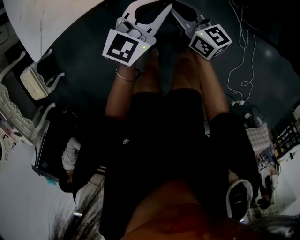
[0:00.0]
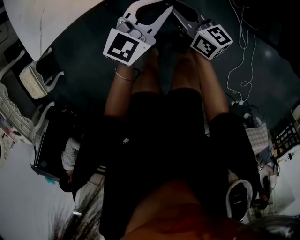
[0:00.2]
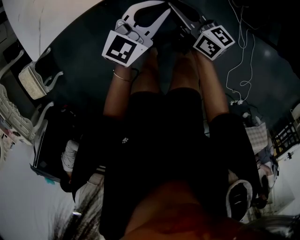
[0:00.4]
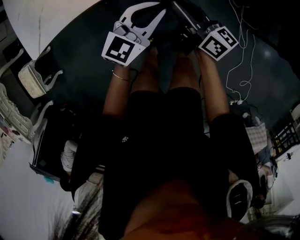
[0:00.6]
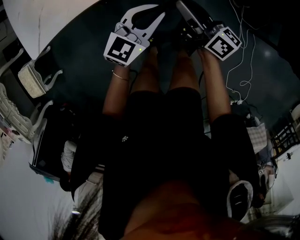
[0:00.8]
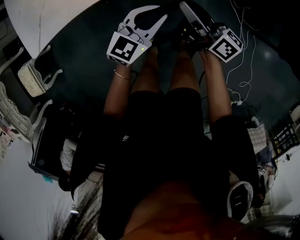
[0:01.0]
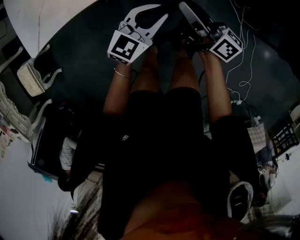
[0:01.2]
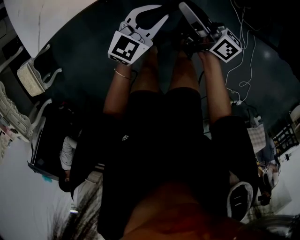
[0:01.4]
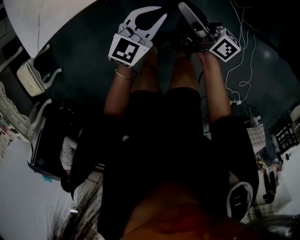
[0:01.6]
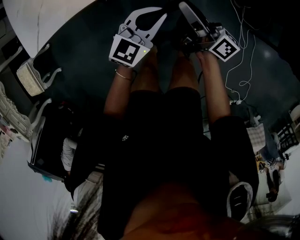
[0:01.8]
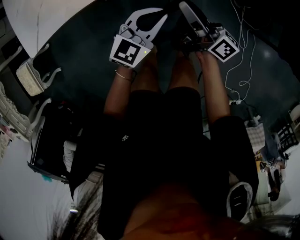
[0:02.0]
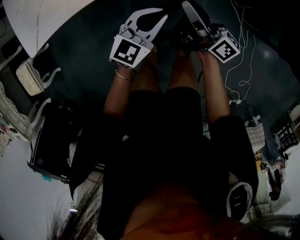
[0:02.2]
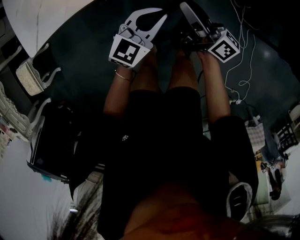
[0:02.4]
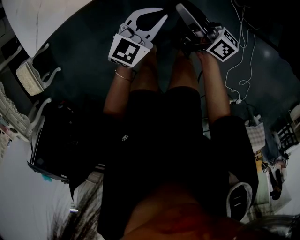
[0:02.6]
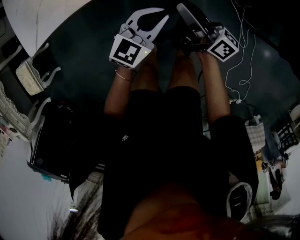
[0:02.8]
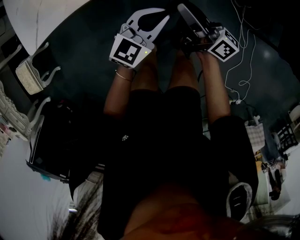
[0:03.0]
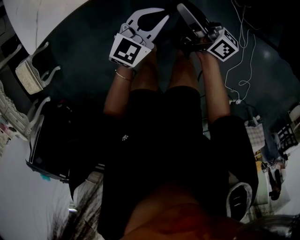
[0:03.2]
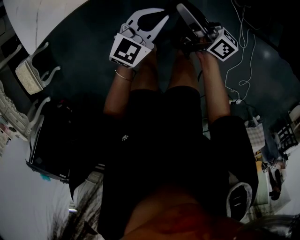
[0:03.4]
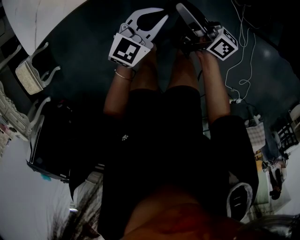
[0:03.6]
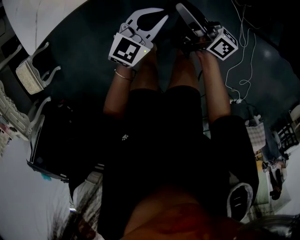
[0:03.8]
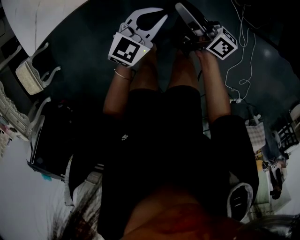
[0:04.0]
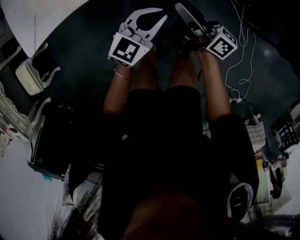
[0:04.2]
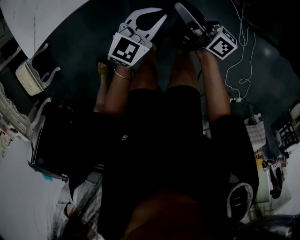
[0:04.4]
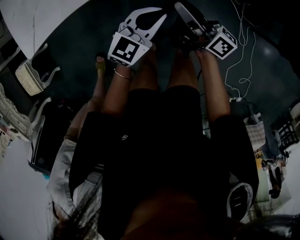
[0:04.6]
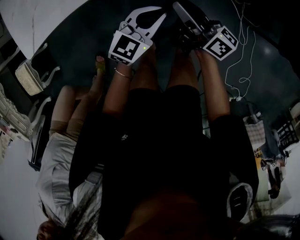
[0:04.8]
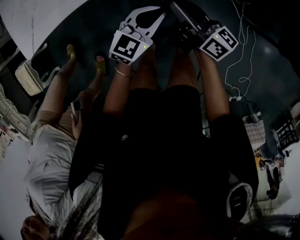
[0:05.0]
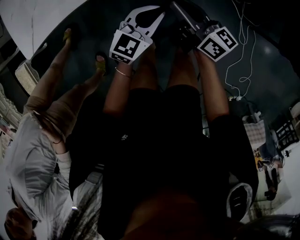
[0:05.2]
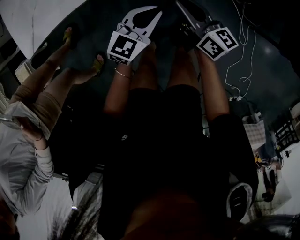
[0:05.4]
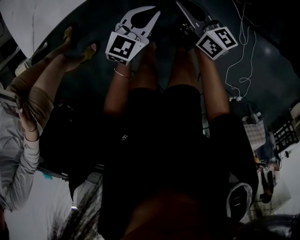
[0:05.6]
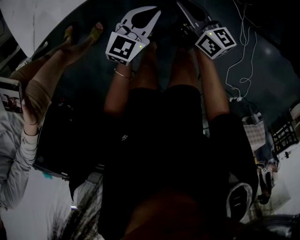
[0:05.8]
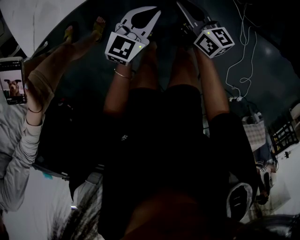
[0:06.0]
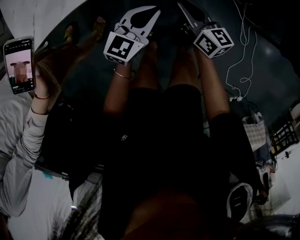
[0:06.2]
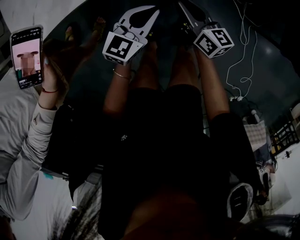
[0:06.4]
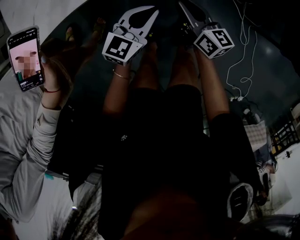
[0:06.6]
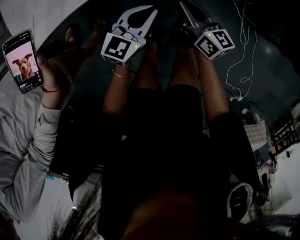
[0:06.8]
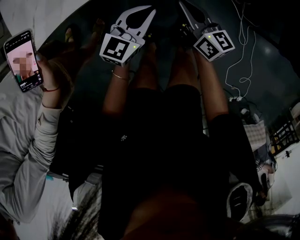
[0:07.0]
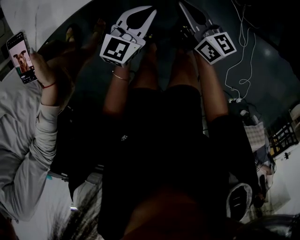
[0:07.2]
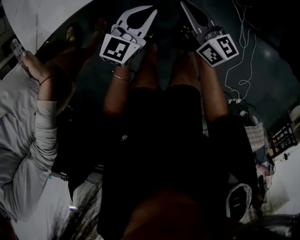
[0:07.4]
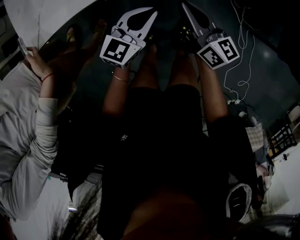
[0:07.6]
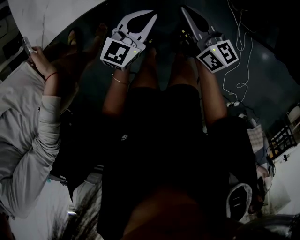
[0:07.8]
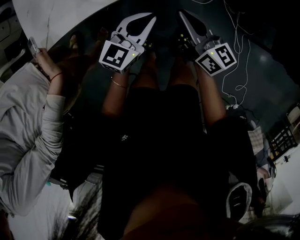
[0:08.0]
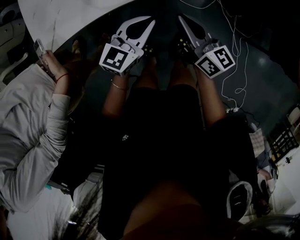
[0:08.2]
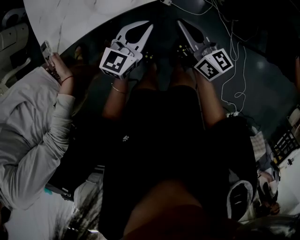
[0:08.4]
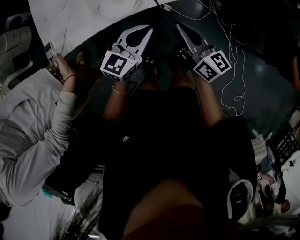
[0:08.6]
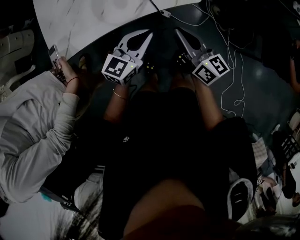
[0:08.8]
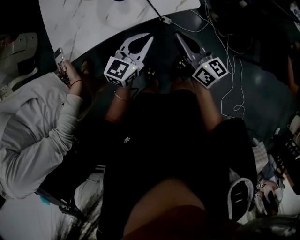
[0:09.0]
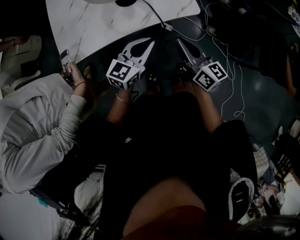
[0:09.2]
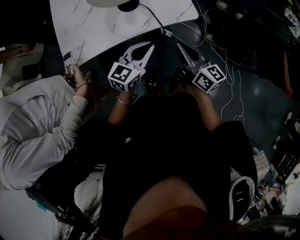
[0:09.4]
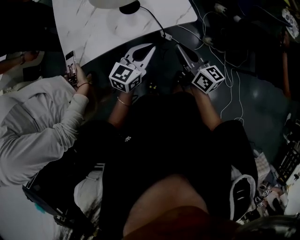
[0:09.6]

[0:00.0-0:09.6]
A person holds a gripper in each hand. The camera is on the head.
0.0 to 1.6 s: The left gripper moves downward, about 5 cm, while the right gripper turns by about 30 degrees.
1.6 to 4.8 s: The grippers stay close to where they were, moving slightly.
4.8 to 6.4 s: The right gripper shifts about 5 cm downward, and changes its angle by roughly 30 degrees.
6.4 to 8.0 s: The right gripper goes approximately 10 cm upward; the left gripper shifts by about 5 cm.
8.0 to 9.6 s: The grippers both shift upward by approximately 10 cm.

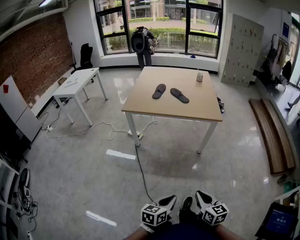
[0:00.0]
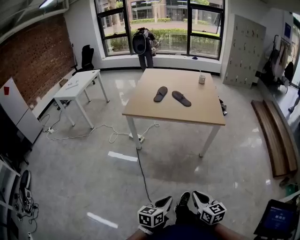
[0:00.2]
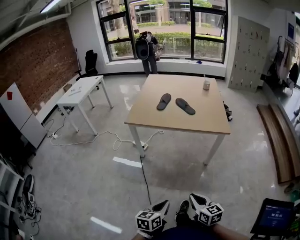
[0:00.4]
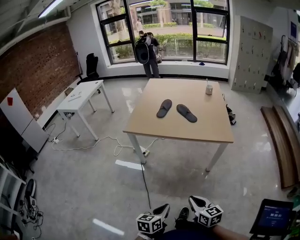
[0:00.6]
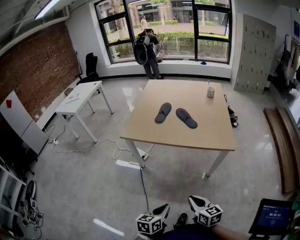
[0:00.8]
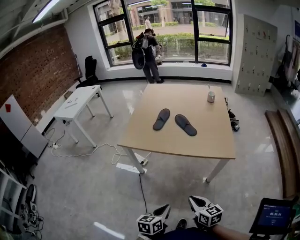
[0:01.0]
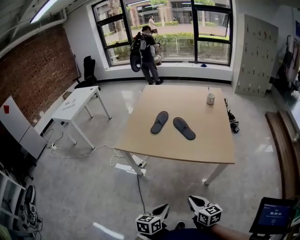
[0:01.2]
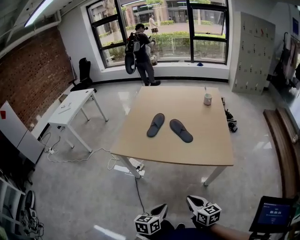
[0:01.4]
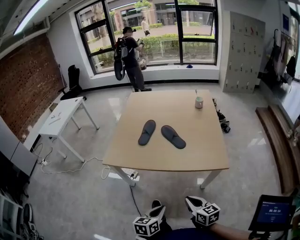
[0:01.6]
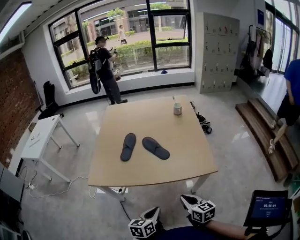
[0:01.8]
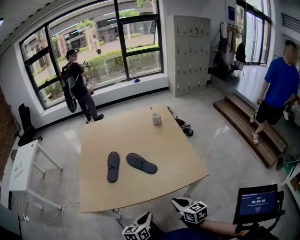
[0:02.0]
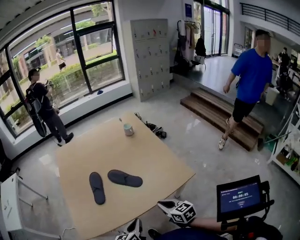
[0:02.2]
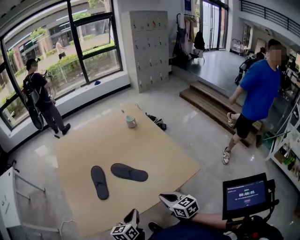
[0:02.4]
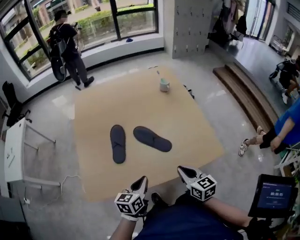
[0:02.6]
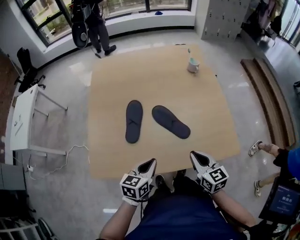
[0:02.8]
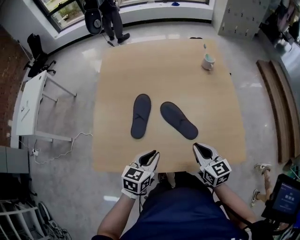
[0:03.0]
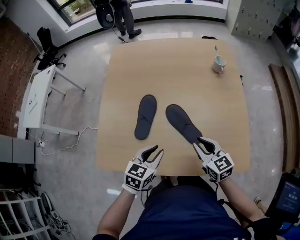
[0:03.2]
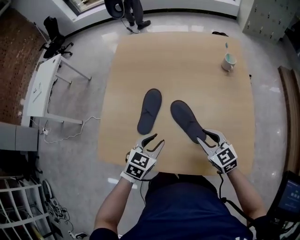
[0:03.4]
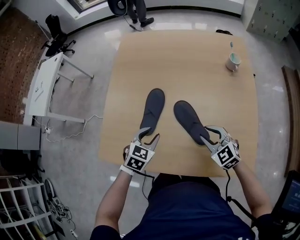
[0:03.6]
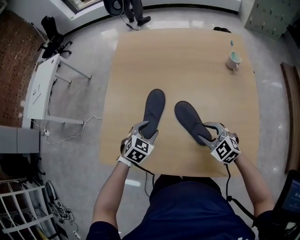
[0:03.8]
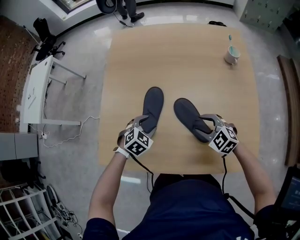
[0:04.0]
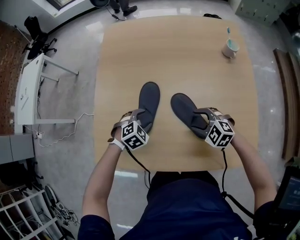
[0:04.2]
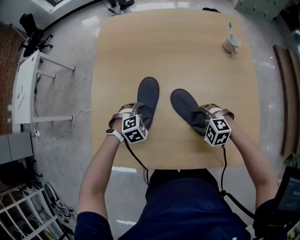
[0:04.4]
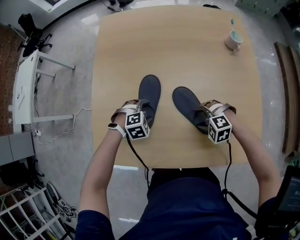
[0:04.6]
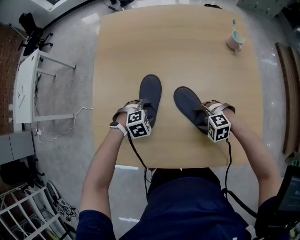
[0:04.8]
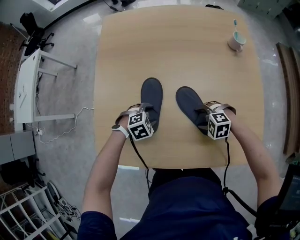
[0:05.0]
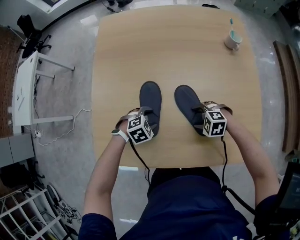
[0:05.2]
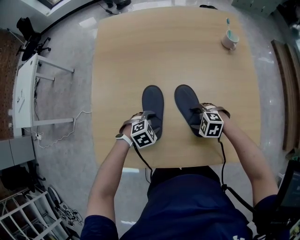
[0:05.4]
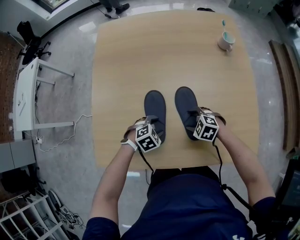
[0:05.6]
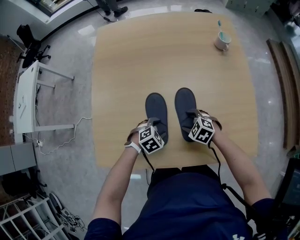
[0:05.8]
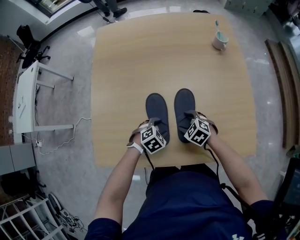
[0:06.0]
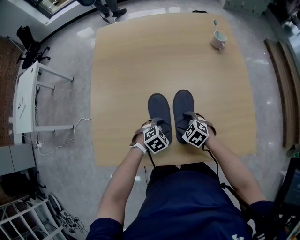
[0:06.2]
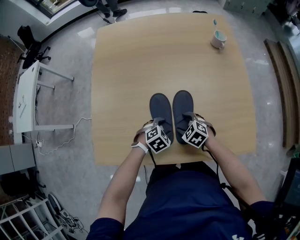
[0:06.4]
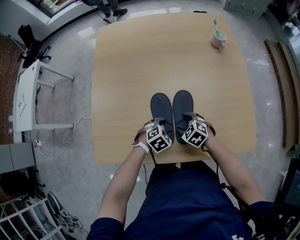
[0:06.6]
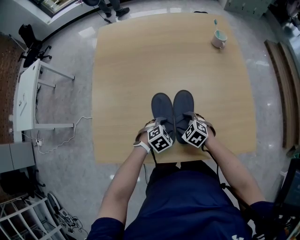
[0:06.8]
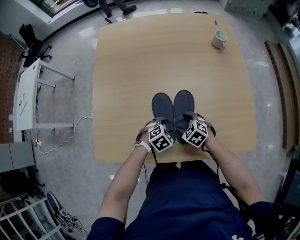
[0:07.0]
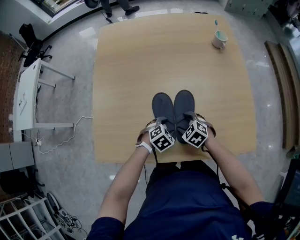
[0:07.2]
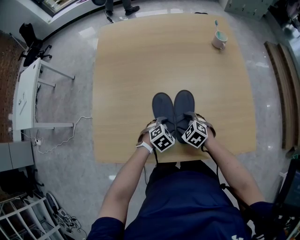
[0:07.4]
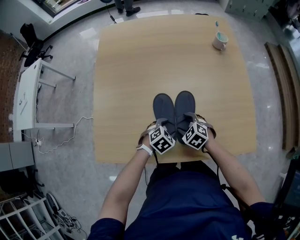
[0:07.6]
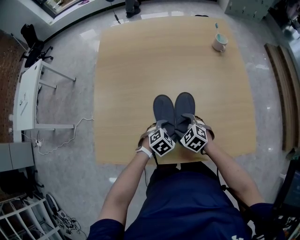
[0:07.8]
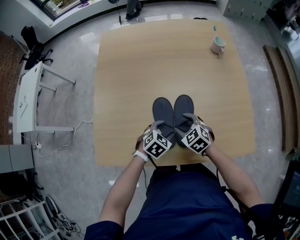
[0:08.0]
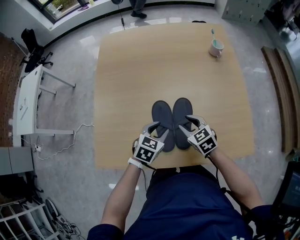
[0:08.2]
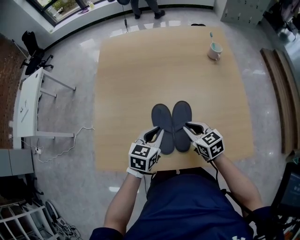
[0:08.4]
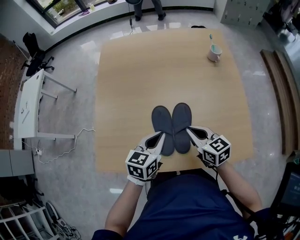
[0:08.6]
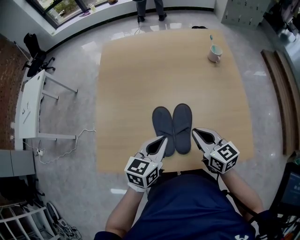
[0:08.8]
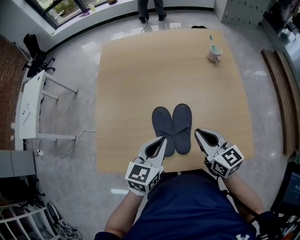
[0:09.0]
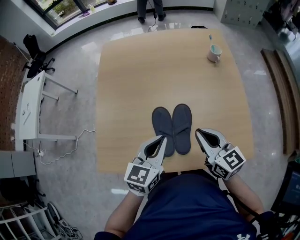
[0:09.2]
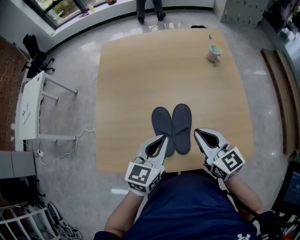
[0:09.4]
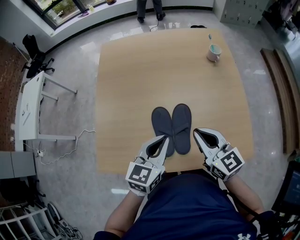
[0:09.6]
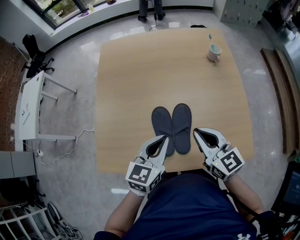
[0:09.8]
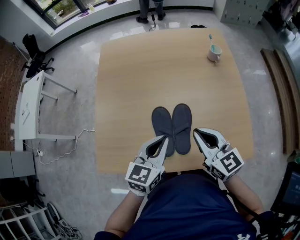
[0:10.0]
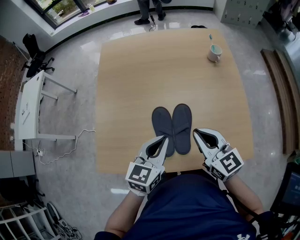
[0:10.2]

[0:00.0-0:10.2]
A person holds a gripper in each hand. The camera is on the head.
0.0 to 1.4 s: The two grippers go about 40 cm forward.
1.4 to 3.0 s: The two grippers go some 40 cm forward. The left gripper rotates some 20 degrees.
3.0 to 4.4 s: The right gripper moves downward and forward, about 20 cm, angles its fingers downward, by some 30 degrees, and opens up; the left gripper is displaced forward and downward by about 25 cm, rolls clockwise, seen from behind, by about 50 degrees, and opens up.
4.4 to 5.8 s: The right gripper changes place by roughly 5 cm, and turns by about 30 degrees; the left gripper moves about 10 cm.
5.8 to 7.2 s: There are only small adjustments of the grippers.
7.2 to 8.8 s: Both grippers travel together upward, approximately 20 cm. The left gripper angles its fingers upward, by approximately 40 degrees, and closes. Meanwhile the right gripper points its fingers some 40 degrees further upward, and closes up.
8.8 to 10.2 s: The right gripper heads upward, covering approximately 5 cm.

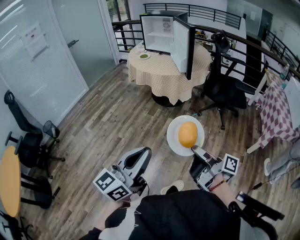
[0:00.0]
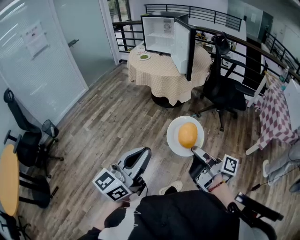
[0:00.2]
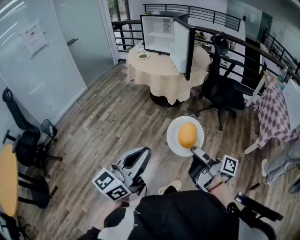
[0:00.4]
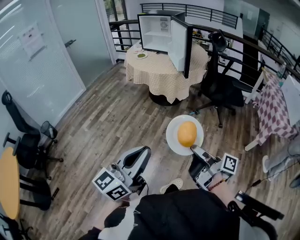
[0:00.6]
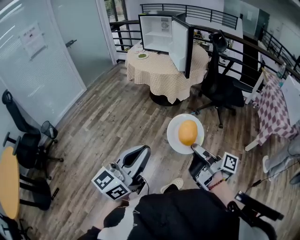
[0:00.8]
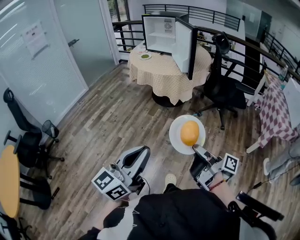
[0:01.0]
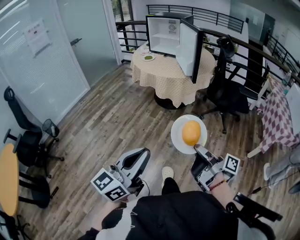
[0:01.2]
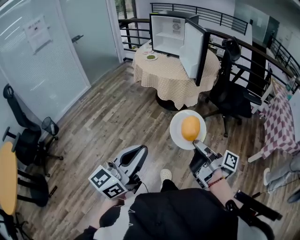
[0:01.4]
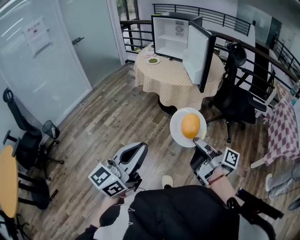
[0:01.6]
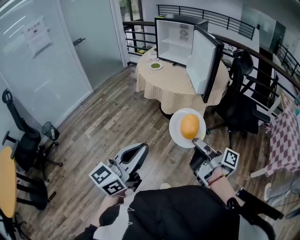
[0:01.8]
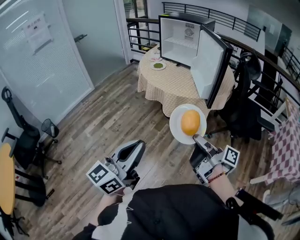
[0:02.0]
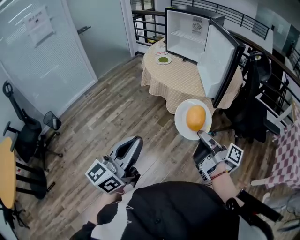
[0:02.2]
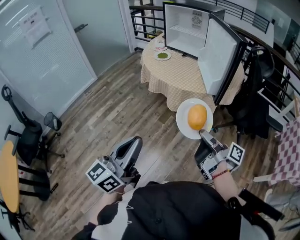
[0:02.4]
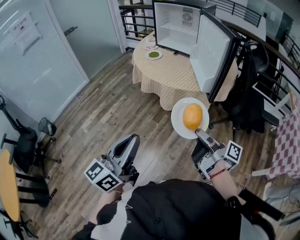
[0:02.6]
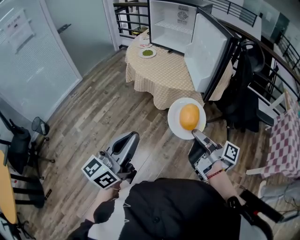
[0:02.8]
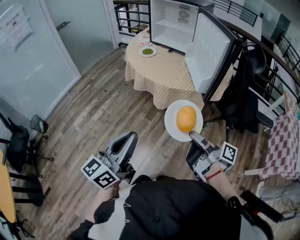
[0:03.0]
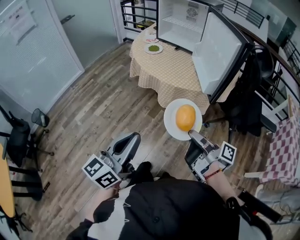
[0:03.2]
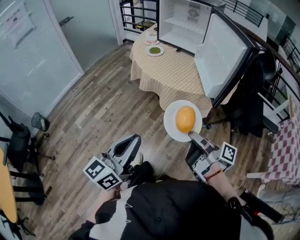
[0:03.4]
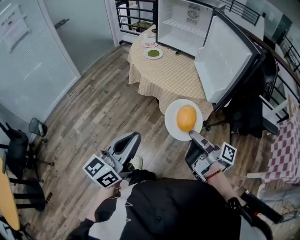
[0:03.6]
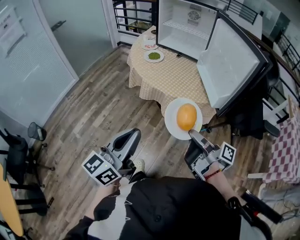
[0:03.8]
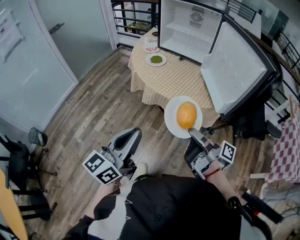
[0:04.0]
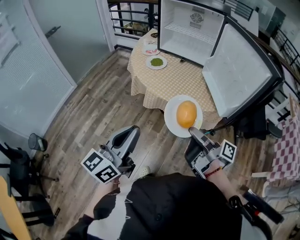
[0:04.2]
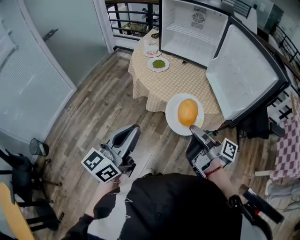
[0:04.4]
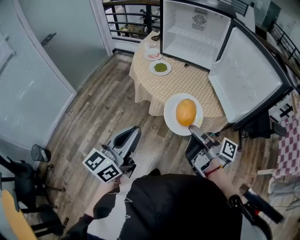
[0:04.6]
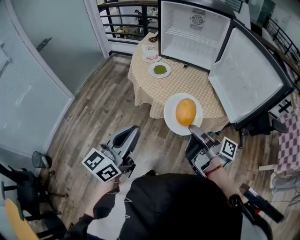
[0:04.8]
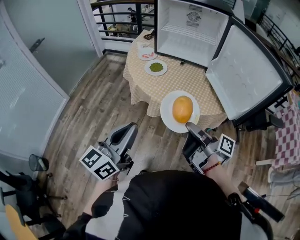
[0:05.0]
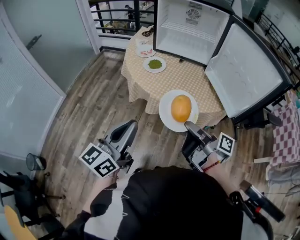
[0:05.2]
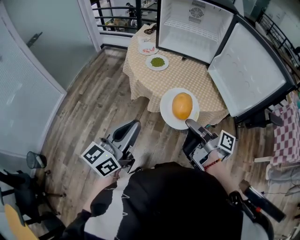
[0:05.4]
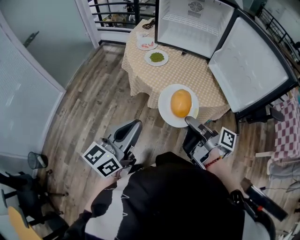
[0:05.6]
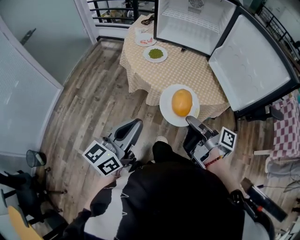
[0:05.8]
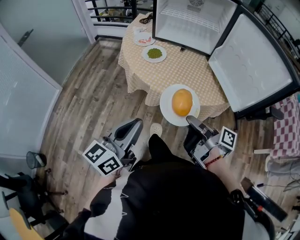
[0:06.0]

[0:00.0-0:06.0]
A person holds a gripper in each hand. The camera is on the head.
0.0 to 1.6 s: The left gripper ends up some 15 cm from where it was.
1.6 to 3.0 s: The left gripper moves about 25 cm.
3.0 to 4.4 s: The left gripper ends up approximately 30 cm from where it was.
4.4 to 6.0 s: The left gripper changes place by roughly 10 cm.
